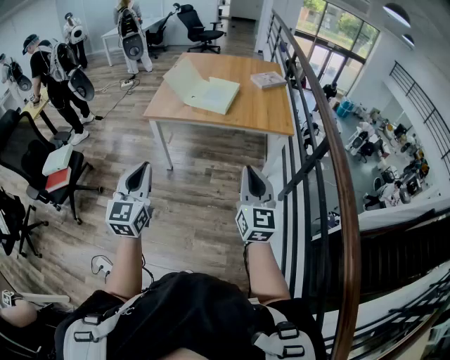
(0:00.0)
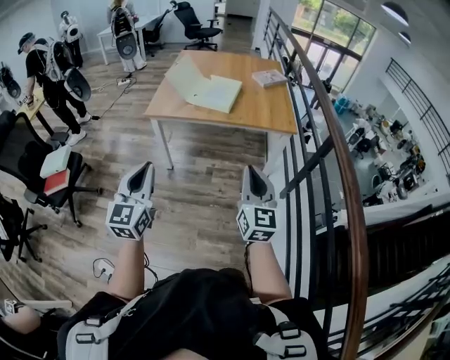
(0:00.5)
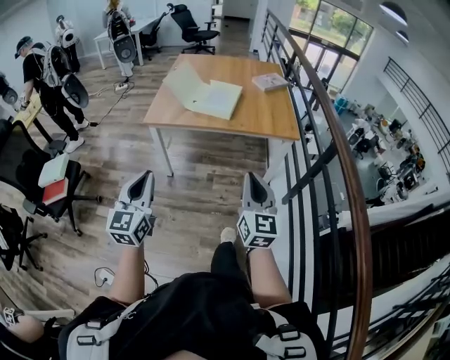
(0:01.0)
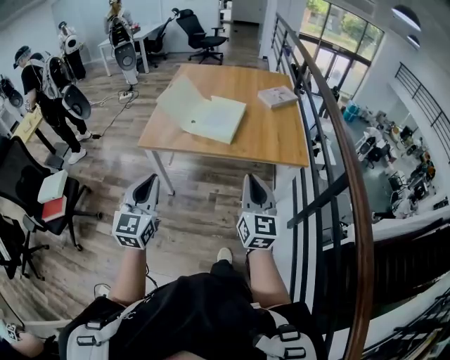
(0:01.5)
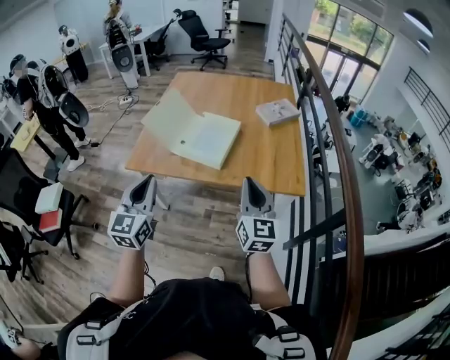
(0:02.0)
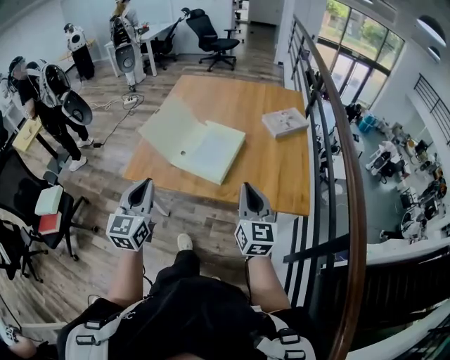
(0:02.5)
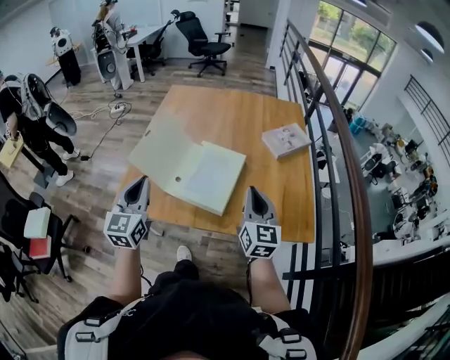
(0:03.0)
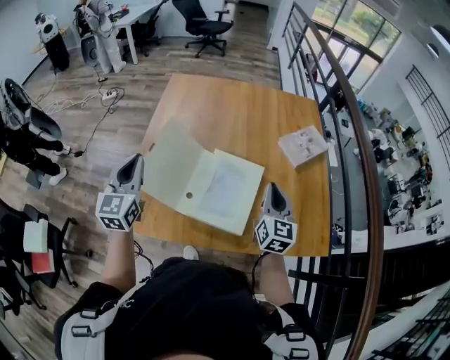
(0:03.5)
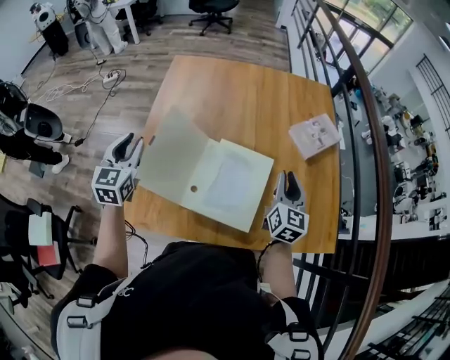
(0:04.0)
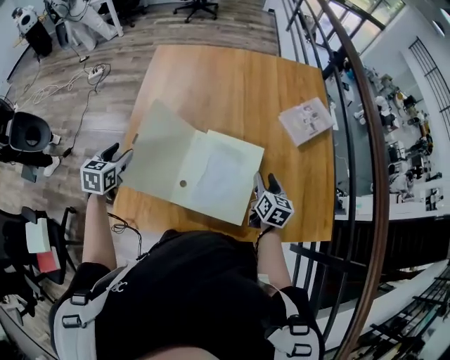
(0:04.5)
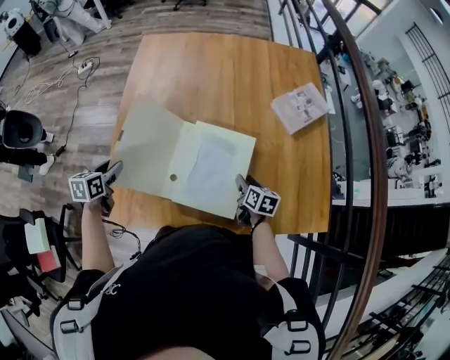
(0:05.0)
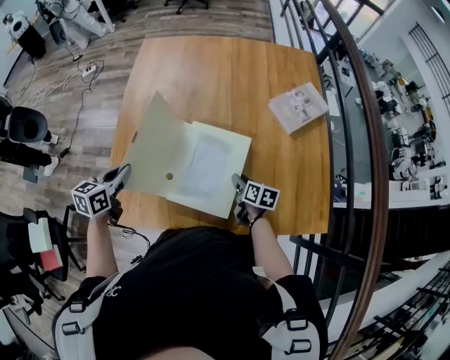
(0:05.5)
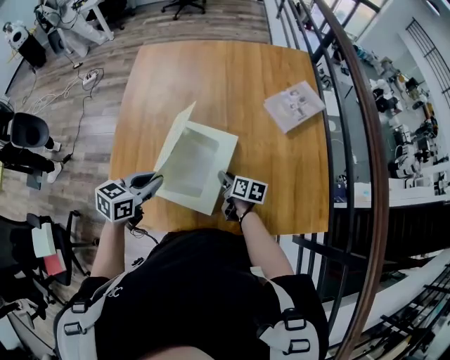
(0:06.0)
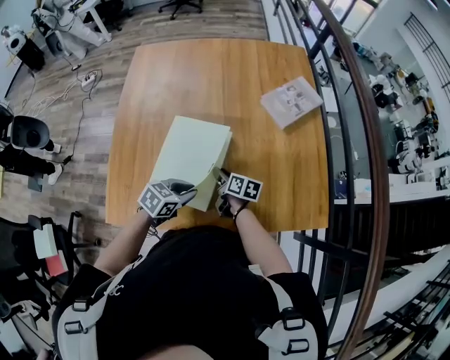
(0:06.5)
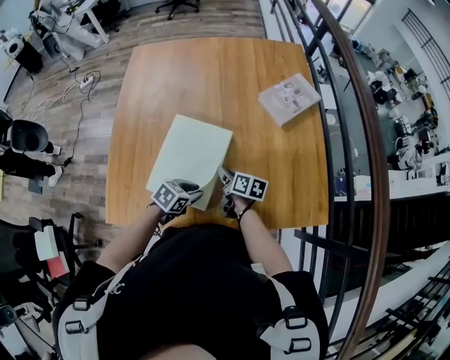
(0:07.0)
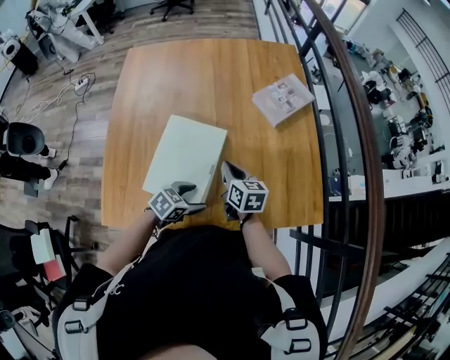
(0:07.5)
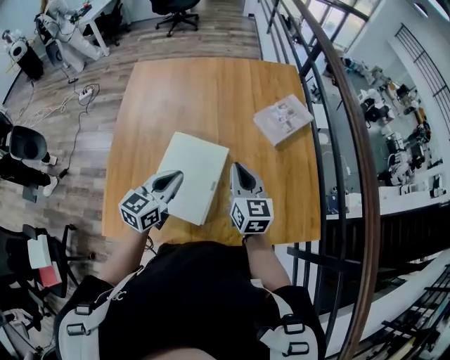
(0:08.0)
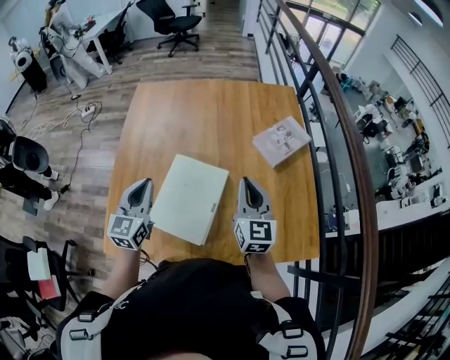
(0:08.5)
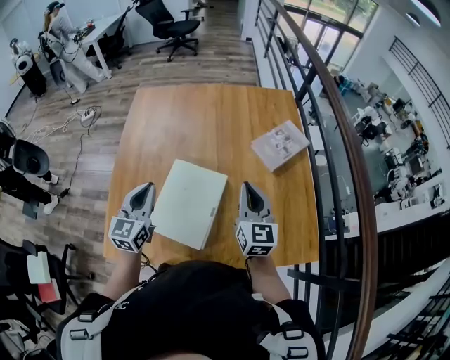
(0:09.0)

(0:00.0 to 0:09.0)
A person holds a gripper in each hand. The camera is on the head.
0:00.0 - 0:02.0: Both grippers travel together forward, roughly 35 cm.
0:02.0 - 0:04.5: The two grippers travel together, forward, about 50 cm. The right gripper is displaced downward by roughly 25 cm, points its fingers some 30 degrees further downward, and opens. The left gripper angles its fingers downward, by approximately 40 degrees, and opens its fingers.
0:04.5 - 0:07.0: The right gripper heads downward and to the left, covering some 10 cm, turns by roughly 40 degrees, and closes. The left gripper is displaced to the right by roughly 35 cm, rotates some 50 degrees, and closes up.
0:07.0 - 0:09.0: The right gripper goes approximately 25 cm upward, and rotates approximately 60 degrees. Meanwhile the left gripper moves upward and to the left, roughly 25 cm, tips its fingers upward by roughly 40 degrees, and opens and closes again.

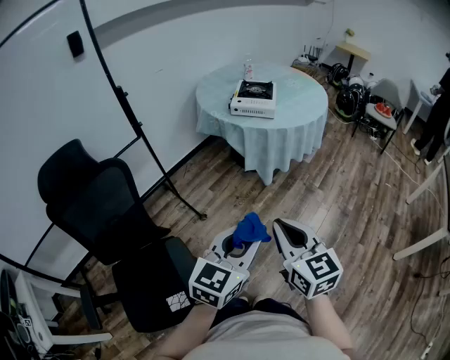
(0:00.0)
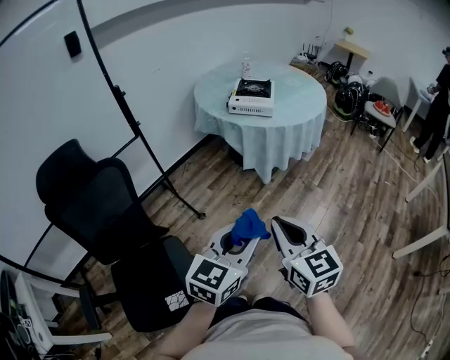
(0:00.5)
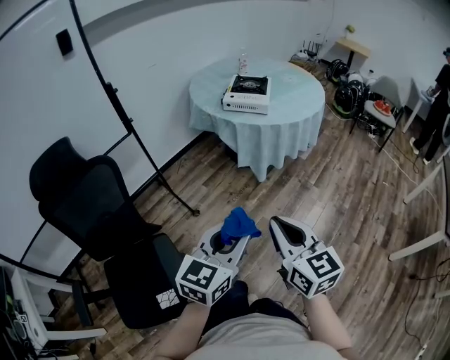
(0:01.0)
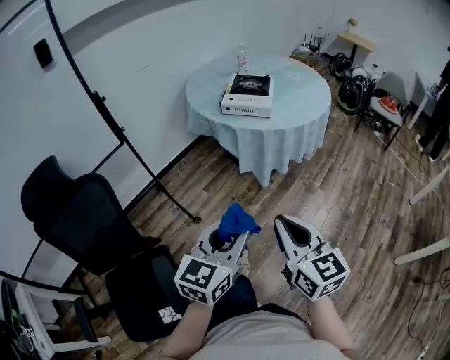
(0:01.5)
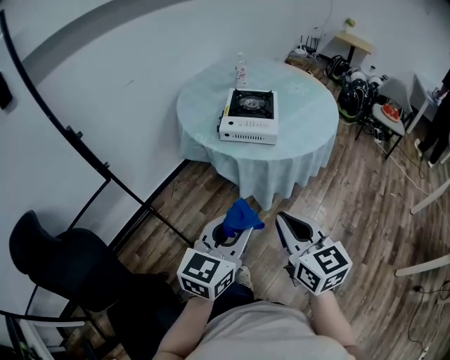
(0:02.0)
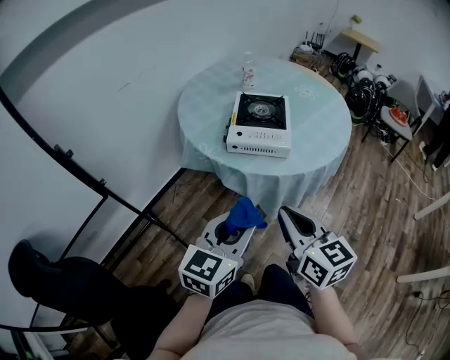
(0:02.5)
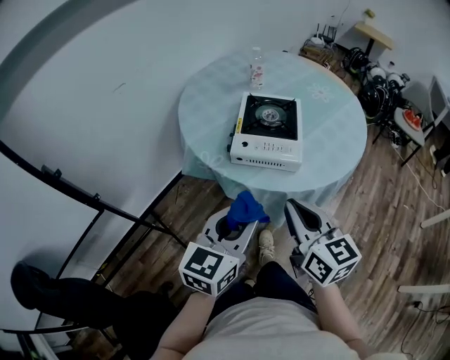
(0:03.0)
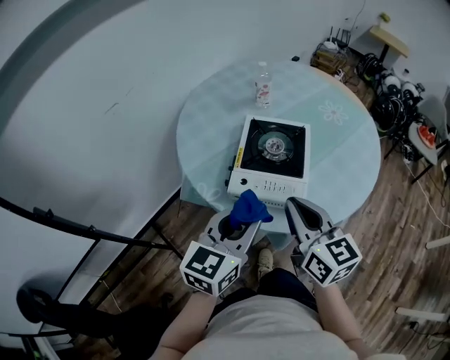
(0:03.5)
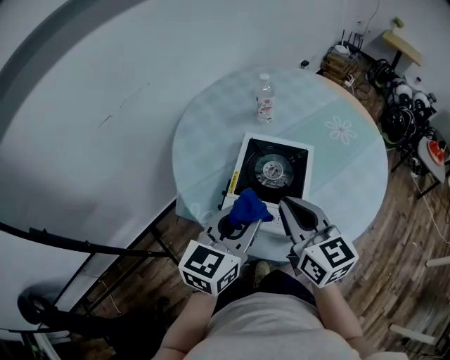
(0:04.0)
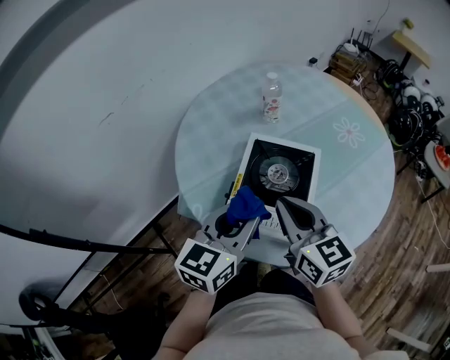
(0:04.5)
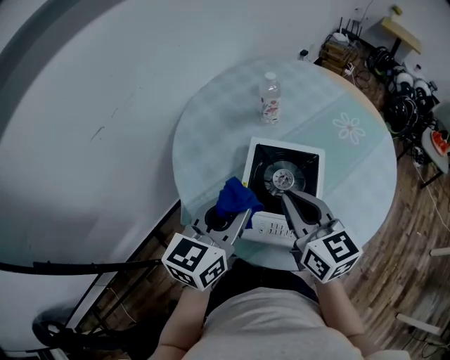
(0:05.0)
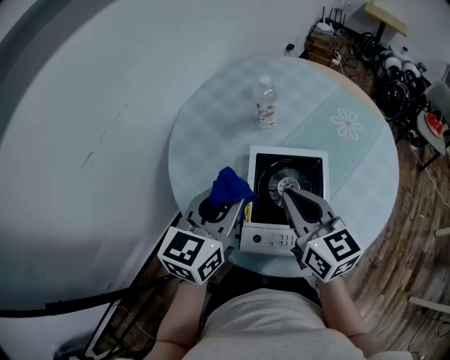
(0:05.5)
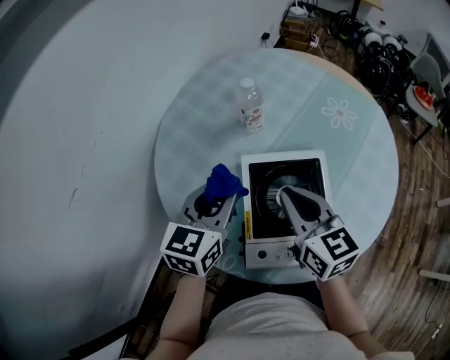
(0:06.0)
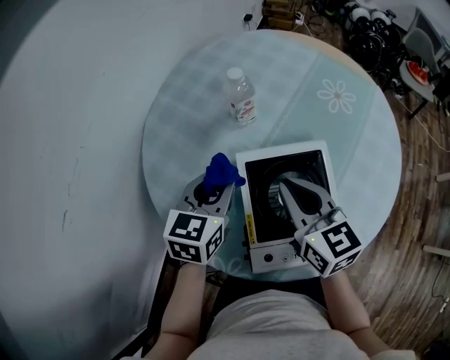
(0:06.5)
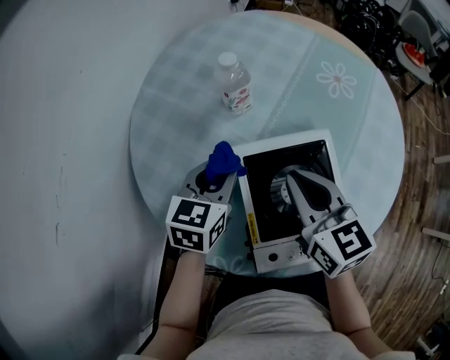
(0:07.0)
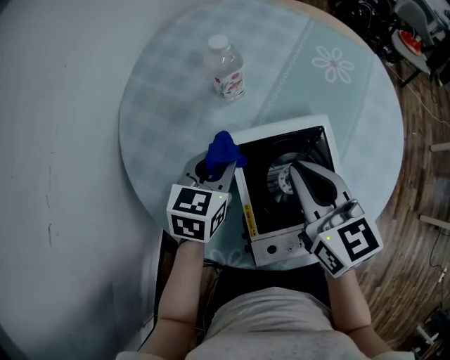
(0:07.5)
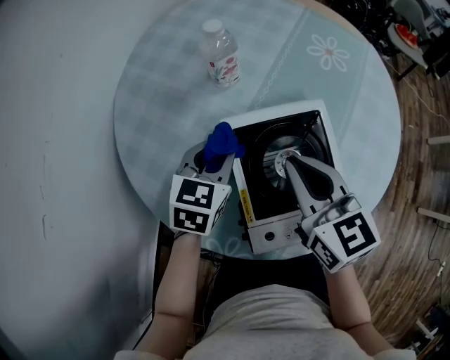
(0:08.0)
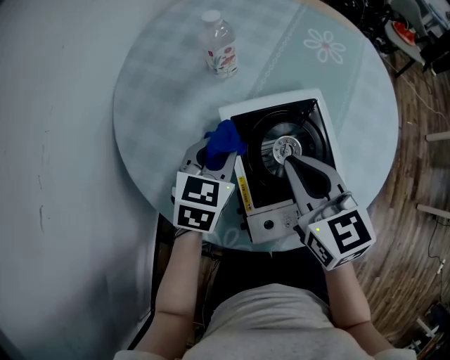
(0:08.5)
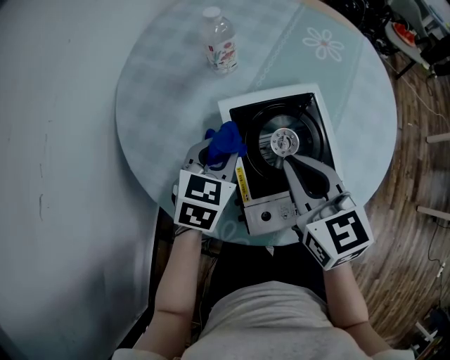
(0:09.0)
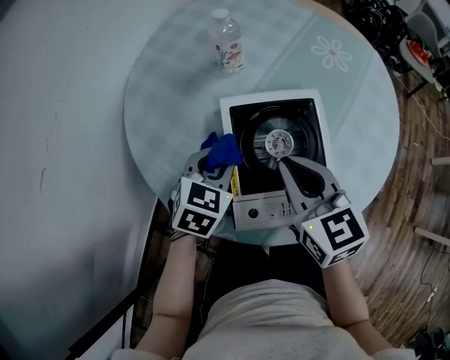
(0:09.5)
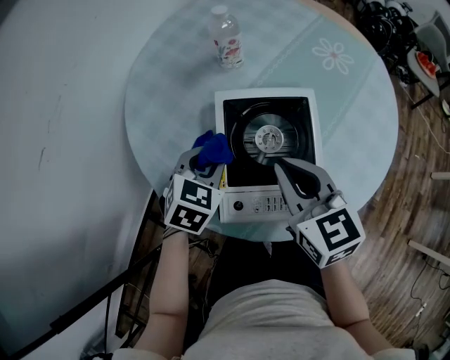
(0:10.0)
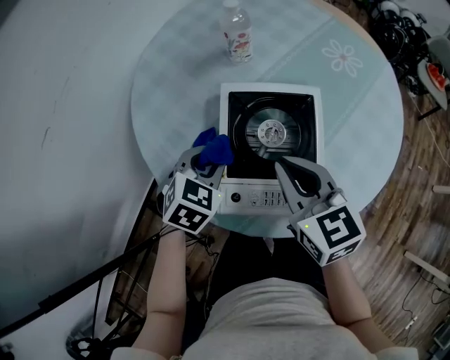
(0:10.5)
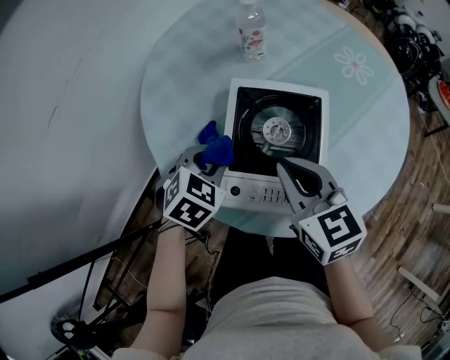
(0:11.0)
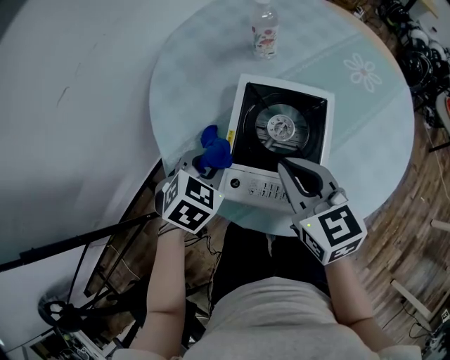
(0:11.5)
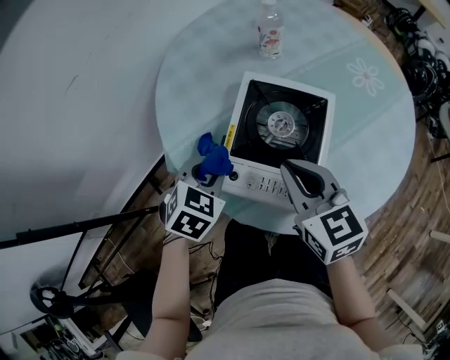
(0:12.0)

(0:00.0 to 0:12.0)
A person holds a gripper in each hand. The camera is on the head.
0:00.0 - 0:02.0: Both grippers travel together forward, about 30 cm.
0:02.0 - 0:04.0: The pair of grippers is taken forward, approximately 40 cm.
0:04.0 - 0:06.0: The right gripper shifts some 15 cm forward. Meanwhile the left gripper is displaced forward and to the left by some 25 cm.
0:06.0 - 0:08.0: The left gripper shifts approximately 15 cm downward and forward, and rotates about 20 degrees.
0:08.0 - 0:10.0: The right gripper shifts roughly 5 cm backward, while the left gripper is displaced backward by about 10 cm.
0:10.0 - 0:12.0: The left gripper goes some 10 cm backward.

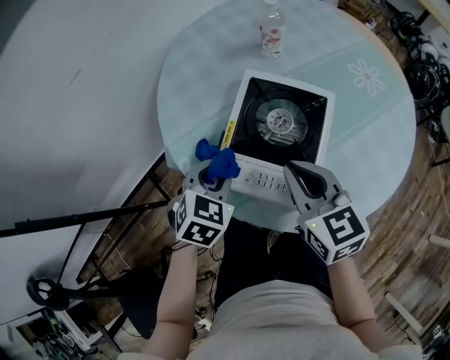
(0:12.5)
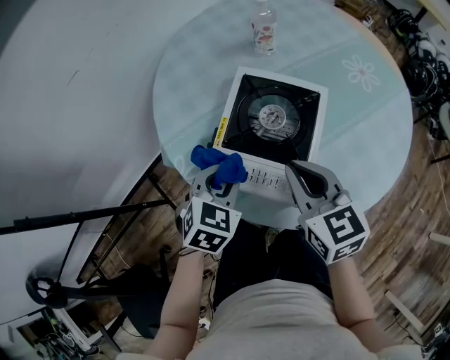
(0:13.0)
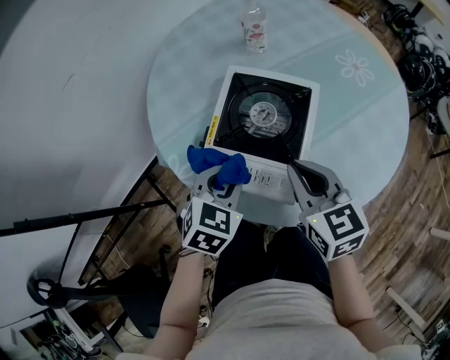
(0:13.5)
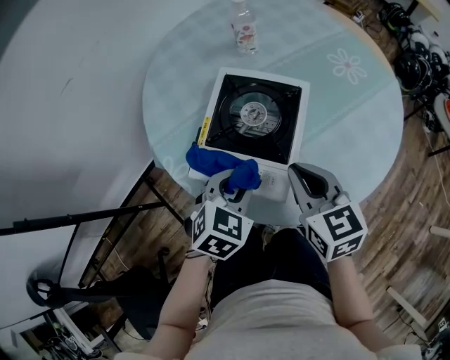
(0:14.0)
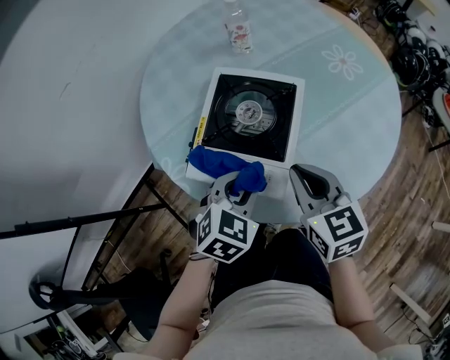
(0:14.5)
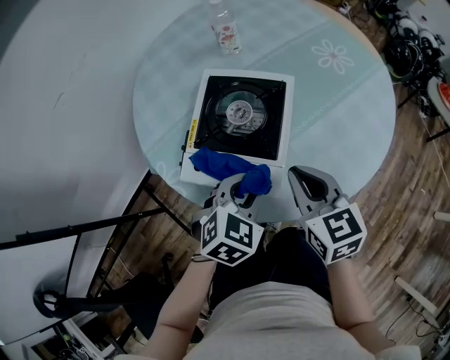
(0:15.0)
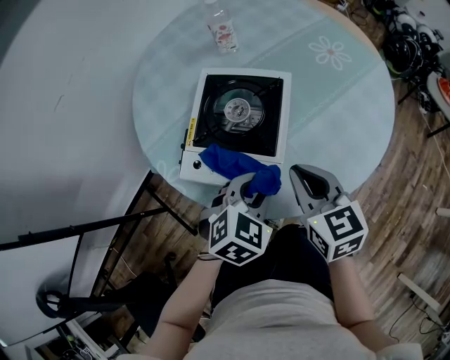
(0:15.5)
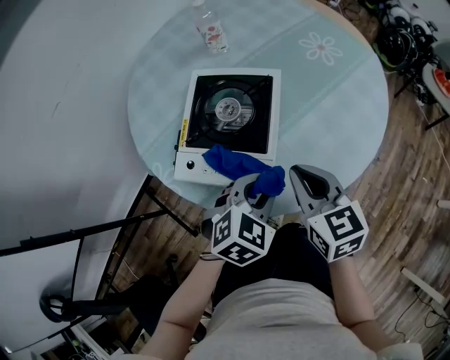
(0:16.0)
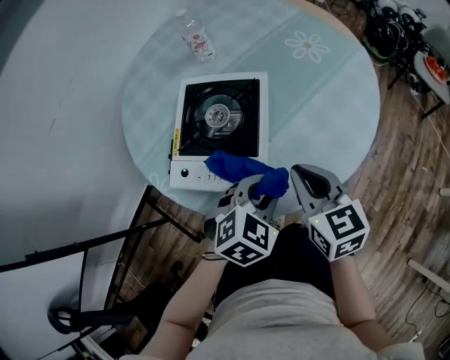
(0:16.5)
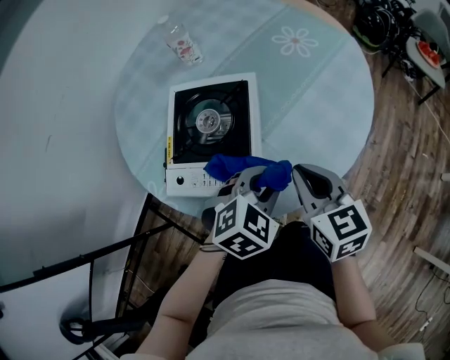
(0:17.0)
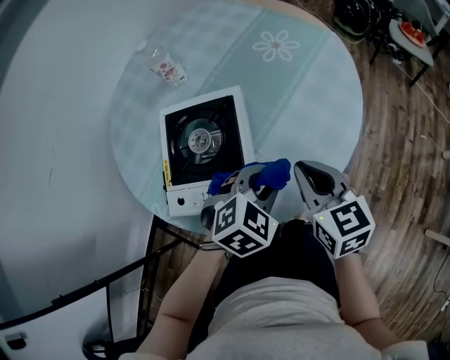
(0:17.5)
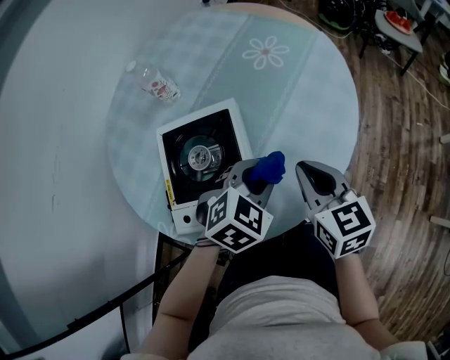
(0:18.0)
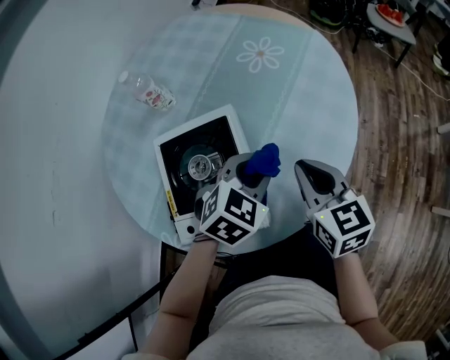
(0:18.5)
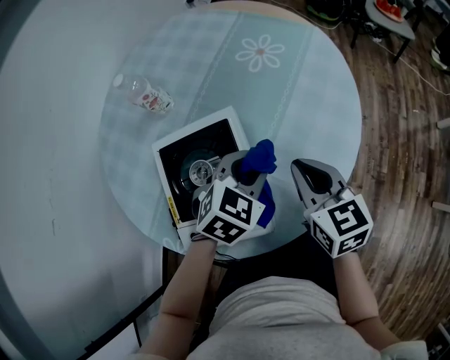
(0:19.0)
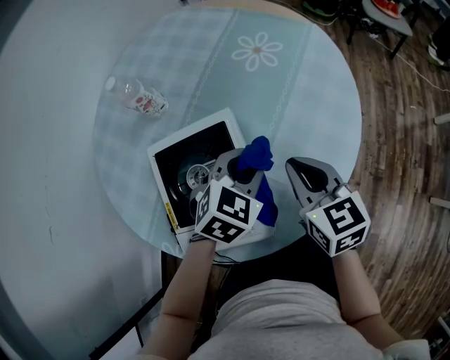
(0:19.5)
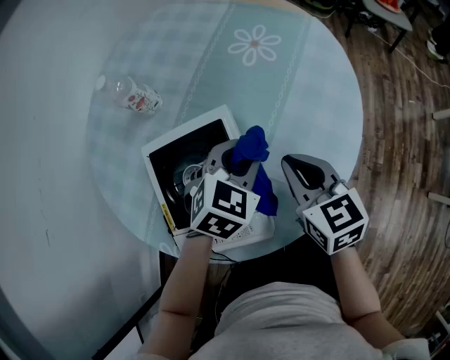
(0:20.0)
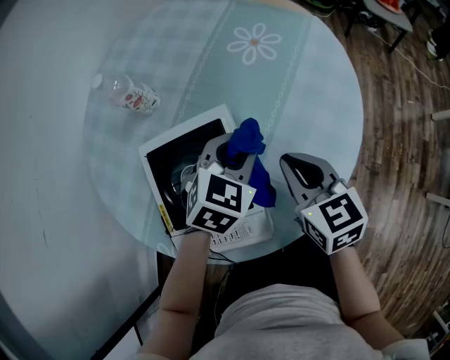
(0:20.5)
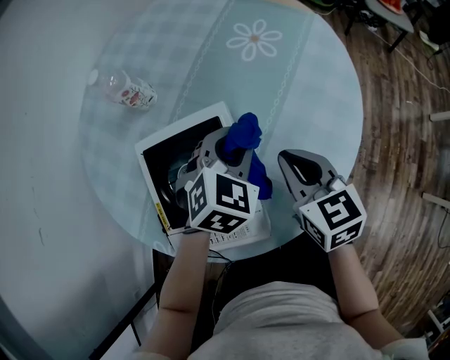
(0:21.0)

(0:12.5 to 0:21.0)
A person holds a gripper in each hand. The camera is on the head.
0:12.5 - 0:14.5: The left gripper goes about 15 cm to the right and backward; the right gripper shifts about 10 cm to the right.
0:14.5 - 0:16.5: The right gripper travels to the right by roughly 5 cm. Meanwhile the left gripper goes approximately 10 cm to the right.
0:16.5 - 0:19.0: The right gripper moves forward, about 10 cm, and changes its angle by approximately 20 degrees. Meanwhile the left gripper heads forward, covering about 15 cm.
0:19.0 - 0:21.0: The left gripper heads forward, covering about 5 cm.
